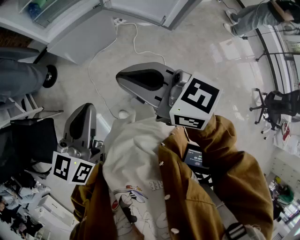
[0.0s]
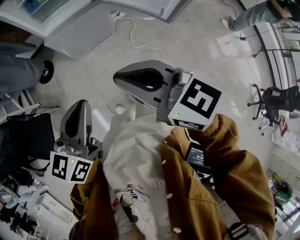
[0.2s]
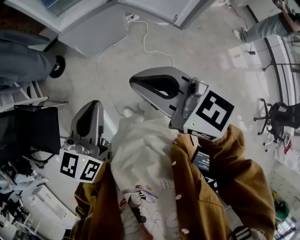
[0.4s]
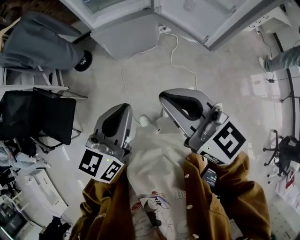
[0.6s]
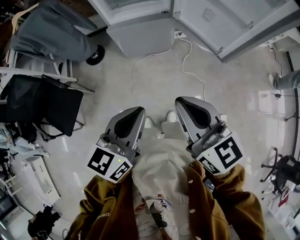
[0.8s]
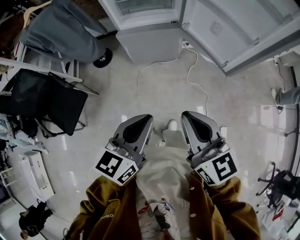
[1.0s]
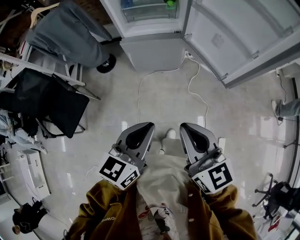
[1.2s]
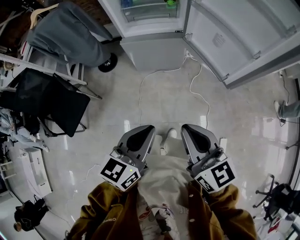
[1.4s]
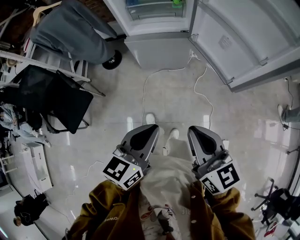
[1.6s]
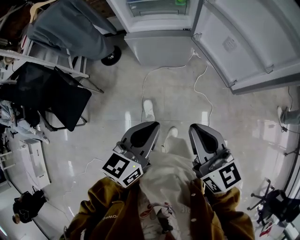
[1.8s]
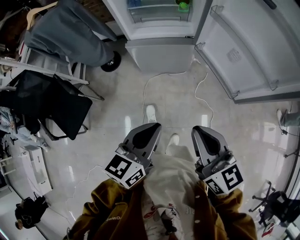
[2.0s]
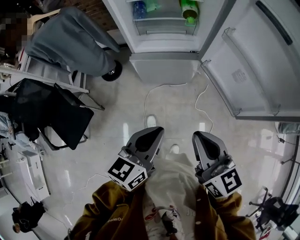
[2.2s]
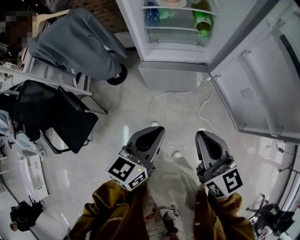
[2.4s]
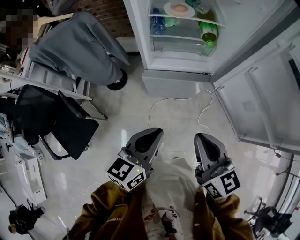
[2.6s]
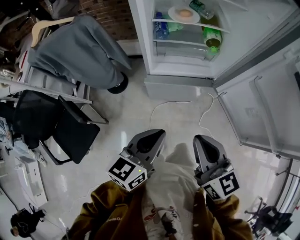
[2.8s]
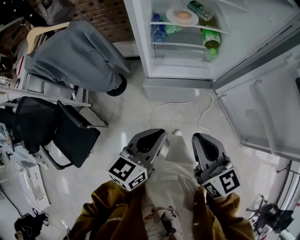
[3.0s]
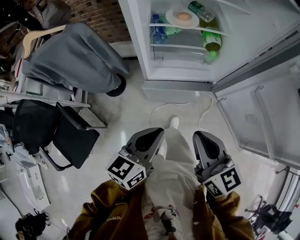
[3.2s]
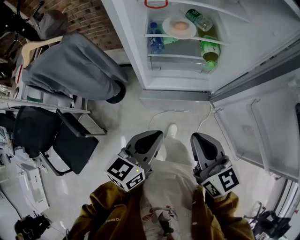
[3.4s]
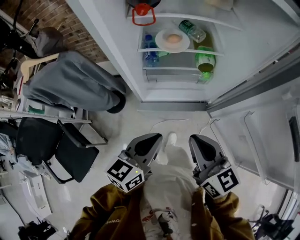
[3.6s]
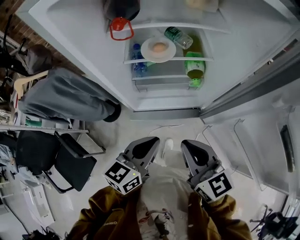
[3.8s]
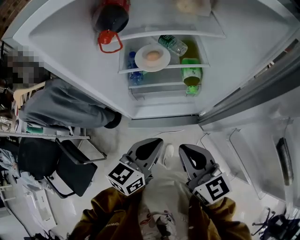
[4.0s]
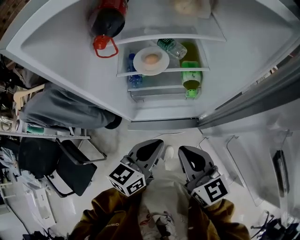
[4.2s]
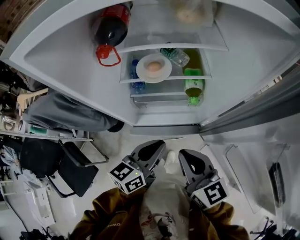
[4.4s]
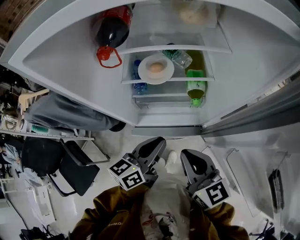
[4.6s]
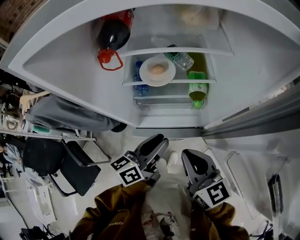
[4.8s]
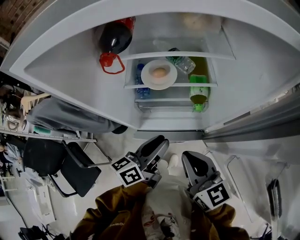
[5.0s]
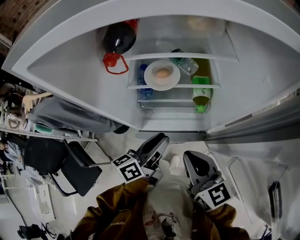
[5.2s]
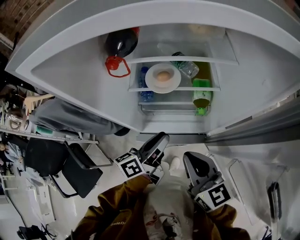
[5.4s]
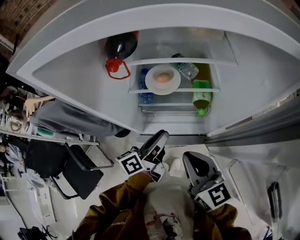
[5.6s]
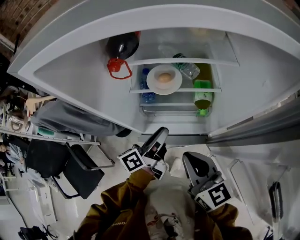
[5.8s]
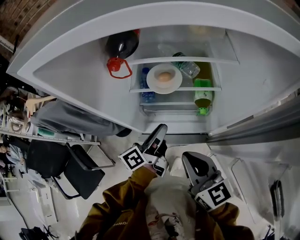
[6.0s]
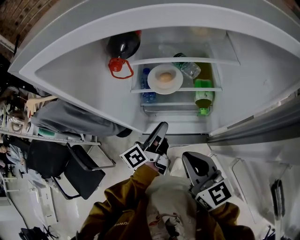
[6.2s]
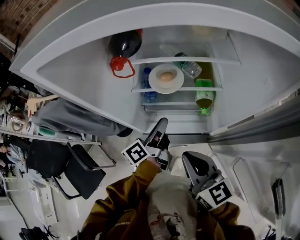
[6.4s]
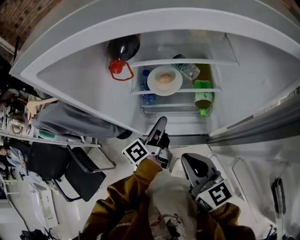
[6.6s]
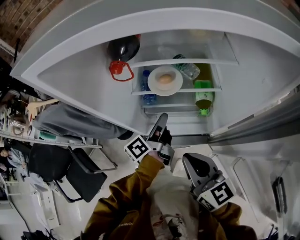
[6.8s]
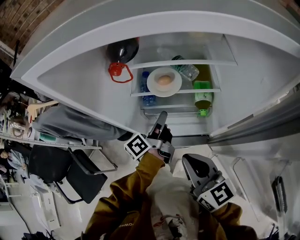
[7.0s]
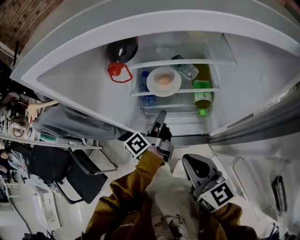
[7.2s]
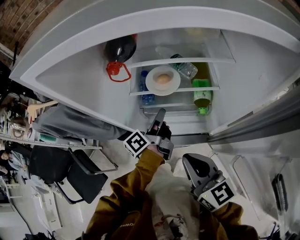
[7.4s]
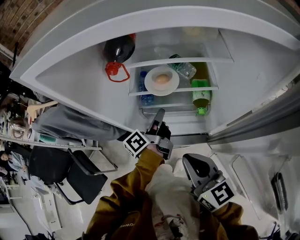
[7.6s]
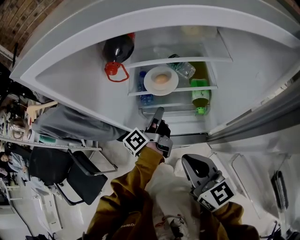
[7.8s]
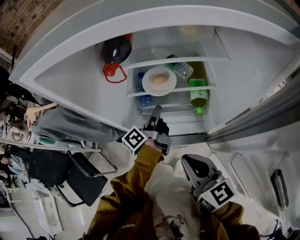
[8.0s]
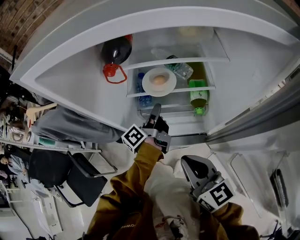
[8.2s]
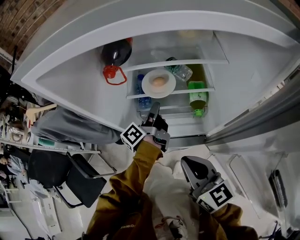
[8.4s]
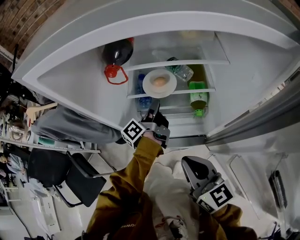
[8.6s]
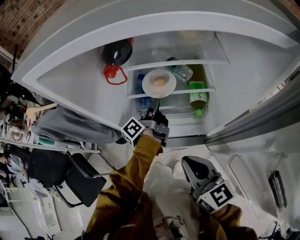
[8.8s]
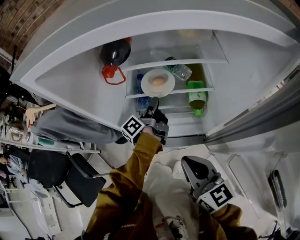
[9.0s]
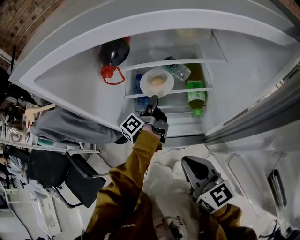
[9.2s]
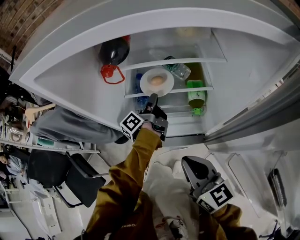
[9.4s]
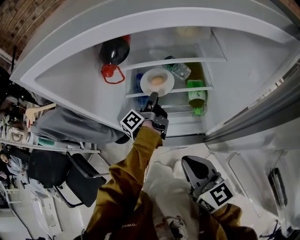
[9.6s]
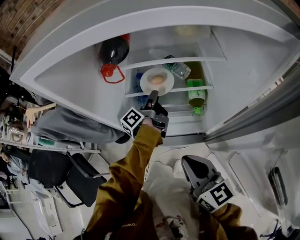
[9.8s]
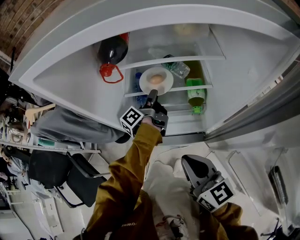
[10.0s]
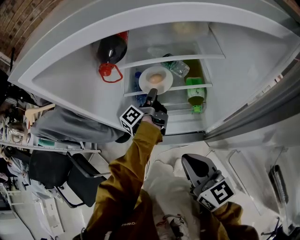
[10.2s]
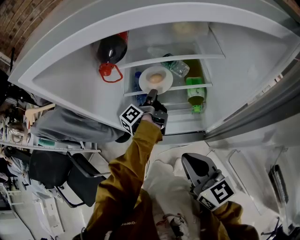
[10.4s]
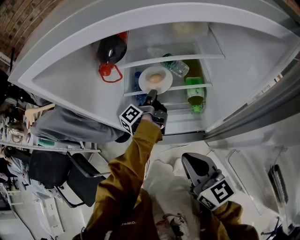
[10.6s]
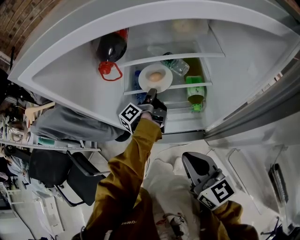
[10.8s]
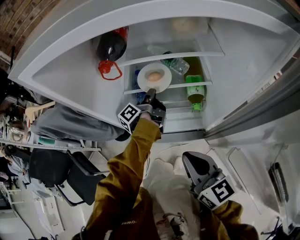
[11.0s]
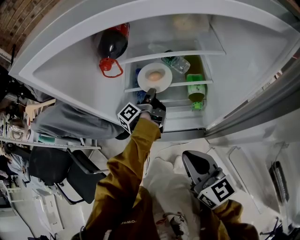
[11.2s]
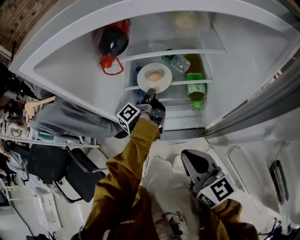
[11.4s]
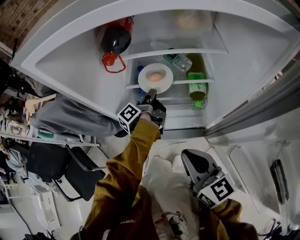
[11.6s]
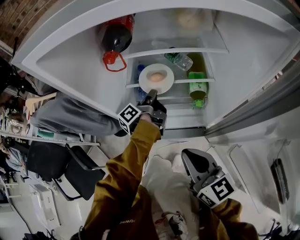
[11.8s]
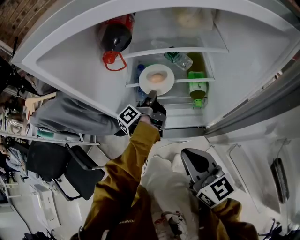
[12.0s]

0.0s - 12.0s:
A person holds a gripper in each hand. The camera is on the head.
0.0s - 1.6s: The right gripper changes place by some 5 cm.
1.6s - 3.0s: The right gripper ends up roughly 35 cm from where it was.
3.0s - 4.4s: The right gripper moves approximately 20 cm.

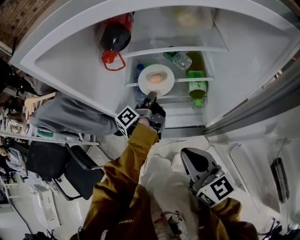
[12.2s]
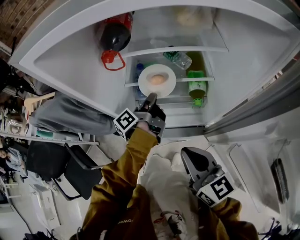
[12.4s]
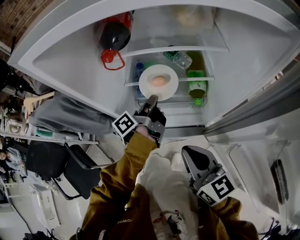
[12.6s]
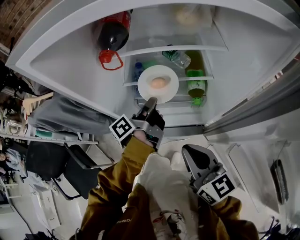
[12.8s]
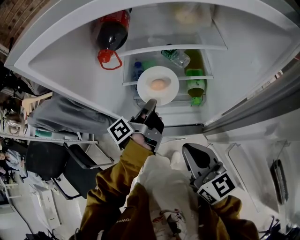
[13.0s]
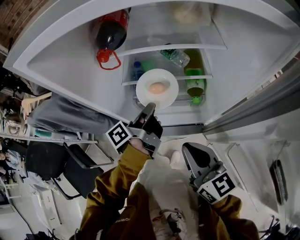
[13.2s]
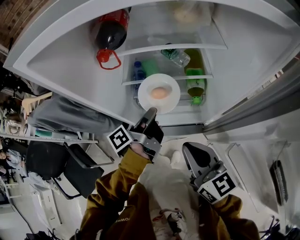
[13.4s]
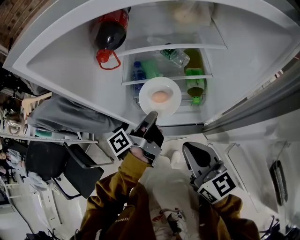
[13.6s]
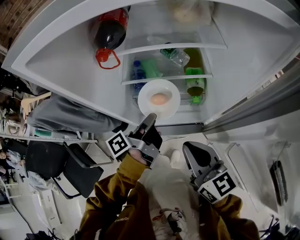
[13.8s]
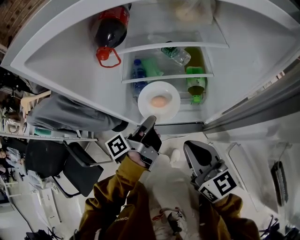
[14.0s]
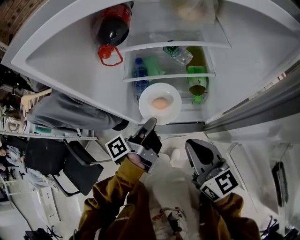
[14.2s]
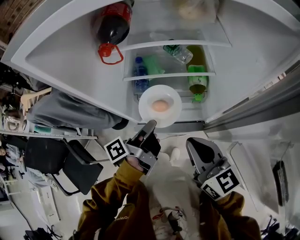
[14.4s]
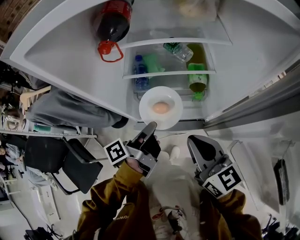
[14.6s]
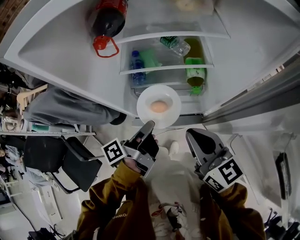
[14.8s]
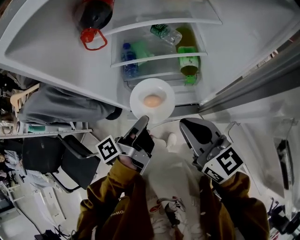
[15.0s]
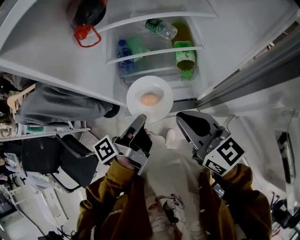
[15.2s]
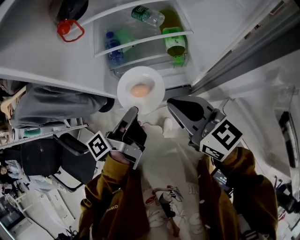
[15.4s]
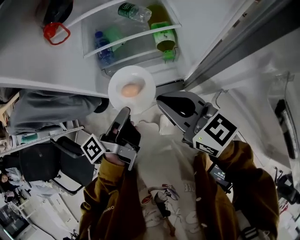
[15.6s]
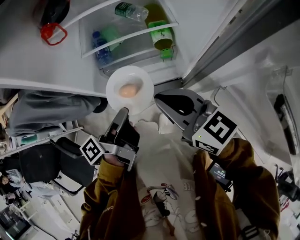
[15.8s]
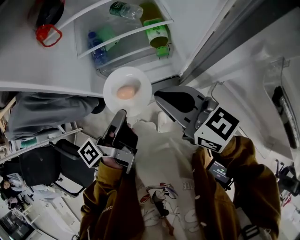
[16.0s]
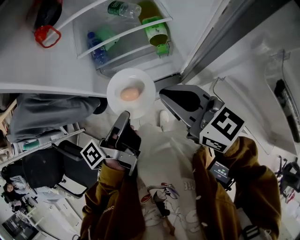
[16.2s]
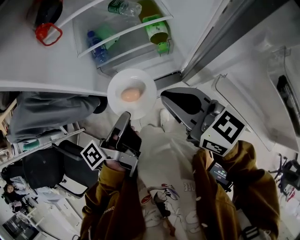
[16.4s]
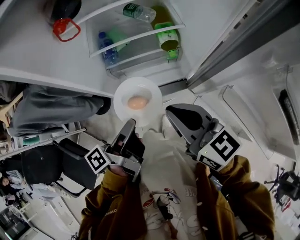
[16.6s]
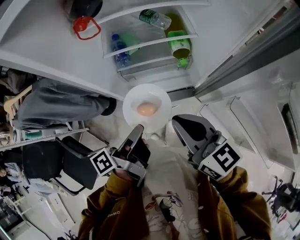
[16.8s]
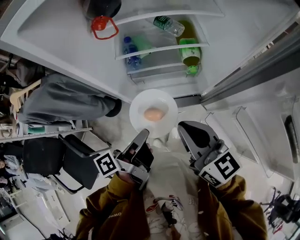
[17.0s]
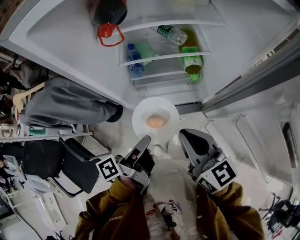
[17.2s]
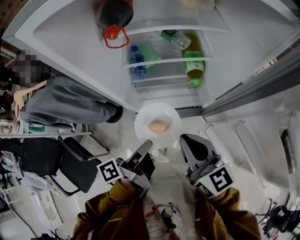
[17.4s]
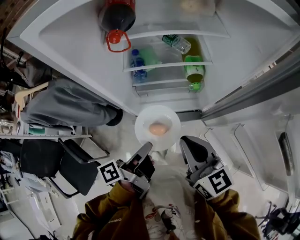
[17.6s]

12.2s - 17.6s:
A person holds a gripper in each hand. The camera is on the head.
16.2s - 17.6s: The right gripper ends up roughly 5 cm from where it was.

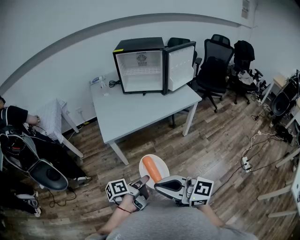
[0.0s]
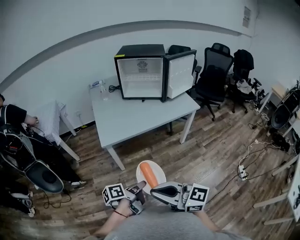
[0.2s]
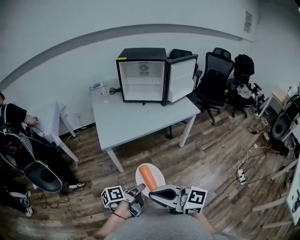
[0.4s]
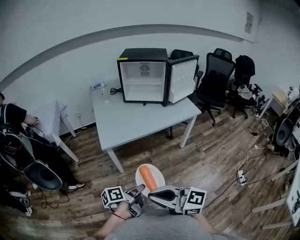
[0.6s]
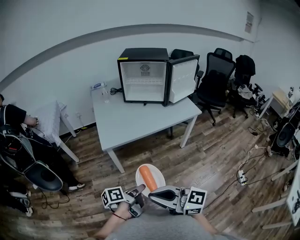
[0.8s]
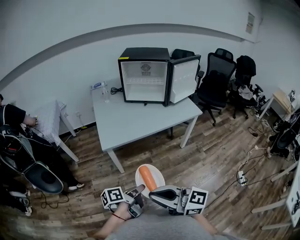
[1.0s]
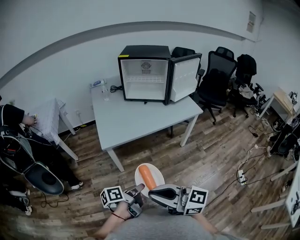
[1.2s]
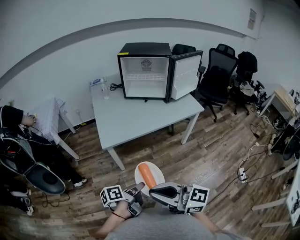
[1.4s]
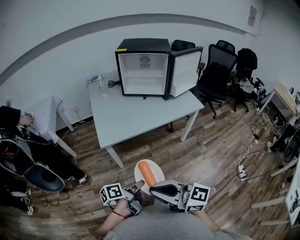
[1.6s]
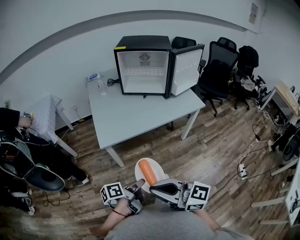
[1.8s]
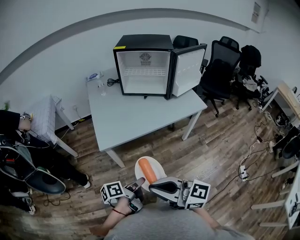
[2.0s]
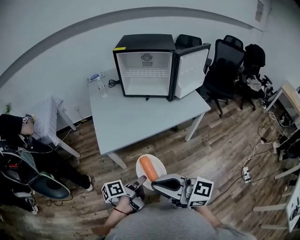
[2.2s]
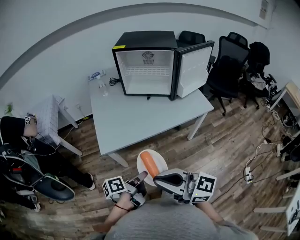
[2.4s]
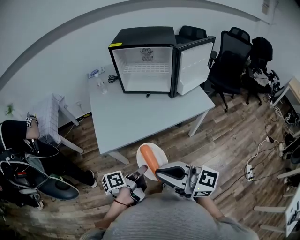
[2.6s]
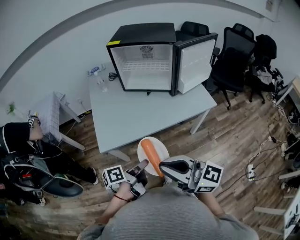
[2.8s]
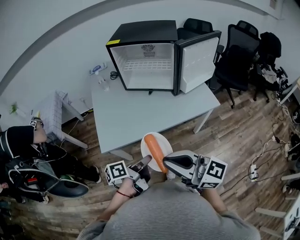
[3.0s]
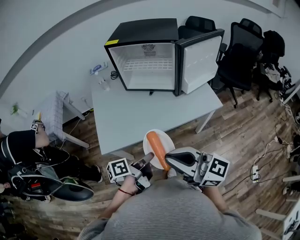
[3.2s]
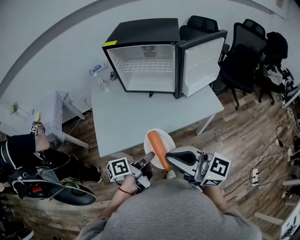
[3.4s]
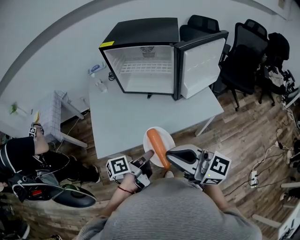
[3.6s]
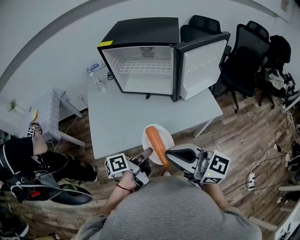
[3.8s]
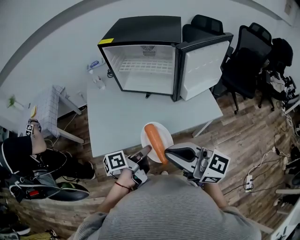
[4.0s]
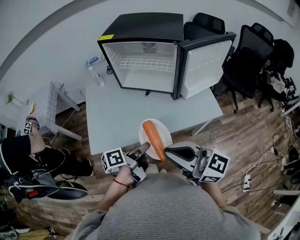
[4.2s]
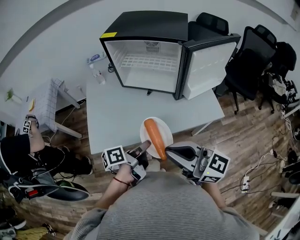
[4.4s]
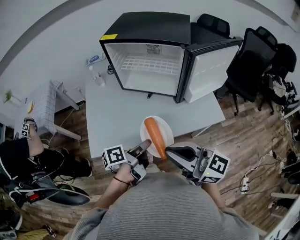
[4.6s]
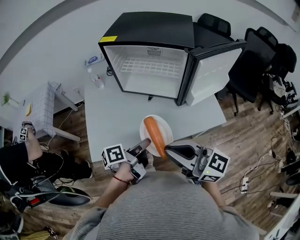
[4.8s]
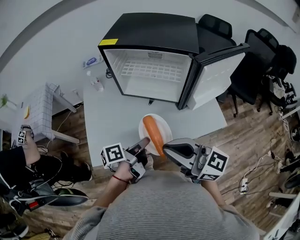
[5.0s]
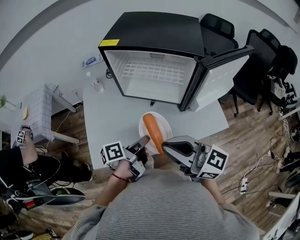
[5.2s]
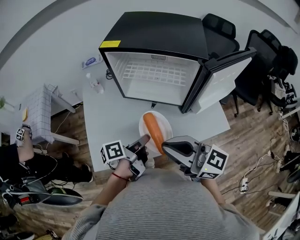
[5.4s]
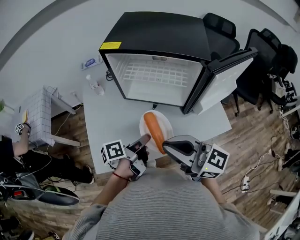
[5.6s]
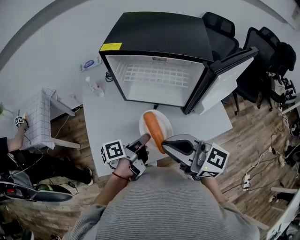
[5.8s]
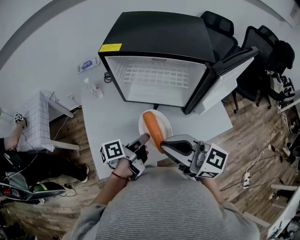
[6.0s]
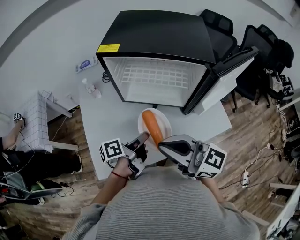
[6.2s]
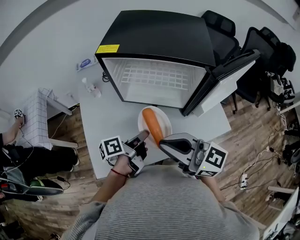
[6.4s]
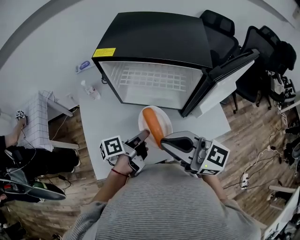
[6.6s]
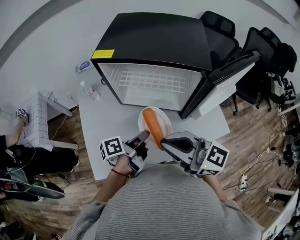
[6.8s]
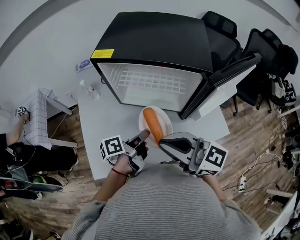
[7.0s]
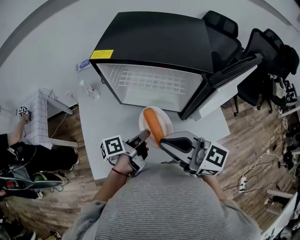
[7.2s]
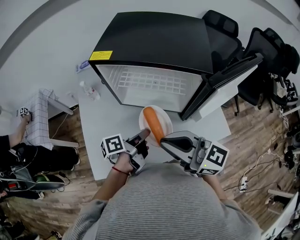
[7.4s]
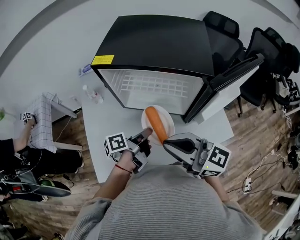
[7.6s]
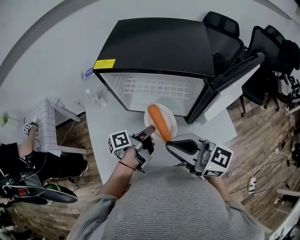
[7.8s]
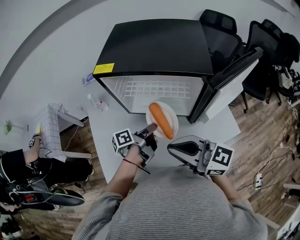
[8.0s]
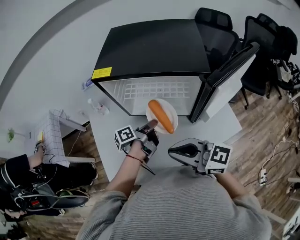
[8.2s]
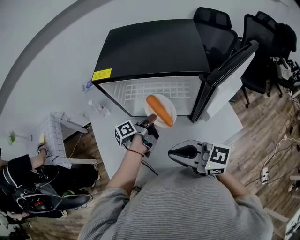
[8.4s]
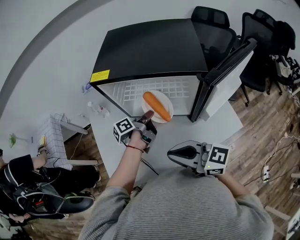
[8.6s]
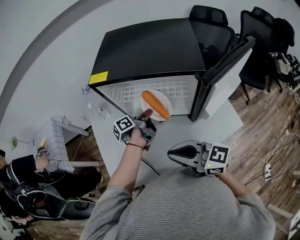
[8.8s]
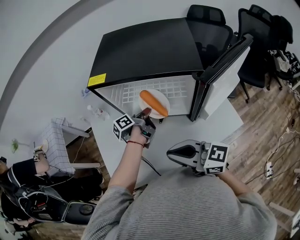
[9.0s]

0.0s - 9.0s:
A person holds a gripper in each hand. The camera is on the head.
0.0s - 1.6s: The right gripper shifts by about 5 cm.
1.6s - 3.0s: The right gripper shifts by some 30 cm.
3.0s - 4.4s: The right gripper shifts by some 15 cm.
4.4s - 6.0s: The right gripper shifts by some 20 cm.
6.0s - 7.6s: The right gripper ends up approximately 5 cm from where it was.
7.6s - 9.0s: The right gripper travels downward by roughly 5 cm.
